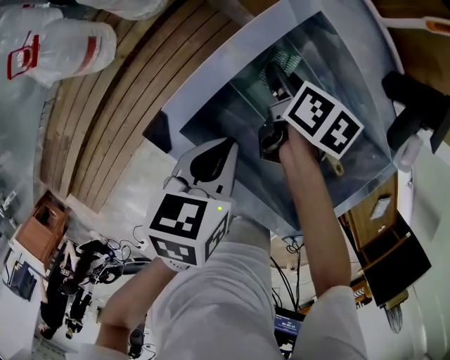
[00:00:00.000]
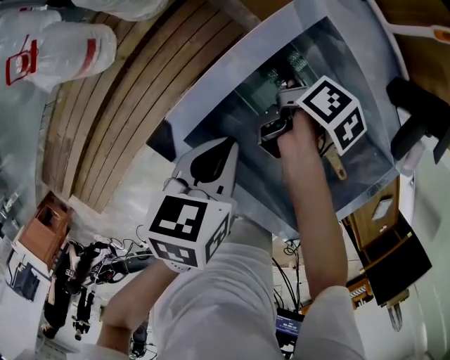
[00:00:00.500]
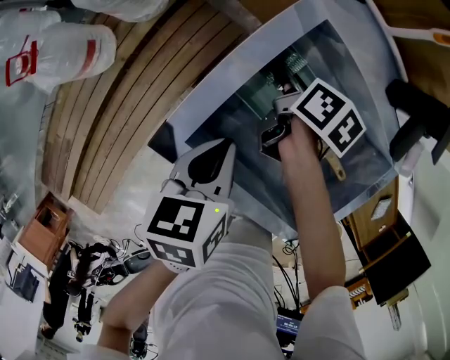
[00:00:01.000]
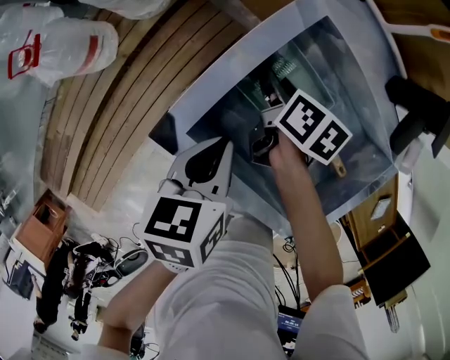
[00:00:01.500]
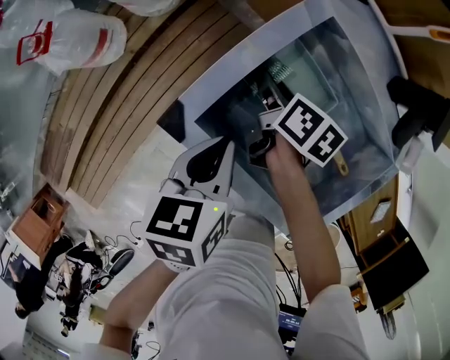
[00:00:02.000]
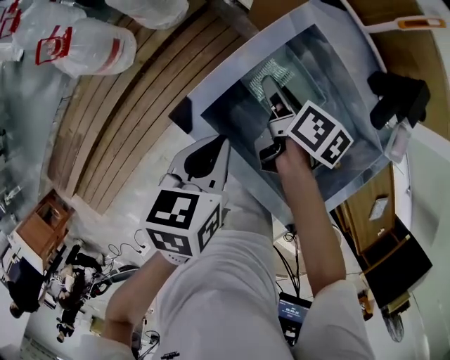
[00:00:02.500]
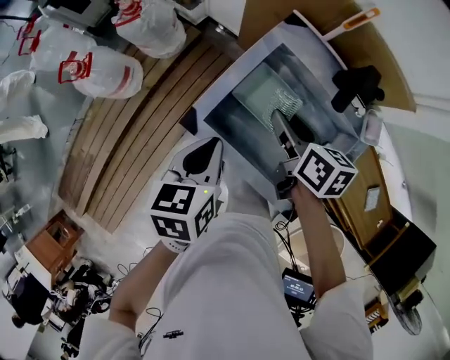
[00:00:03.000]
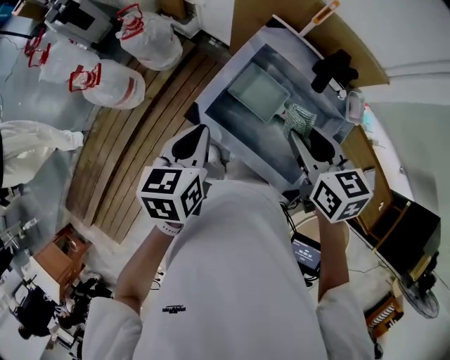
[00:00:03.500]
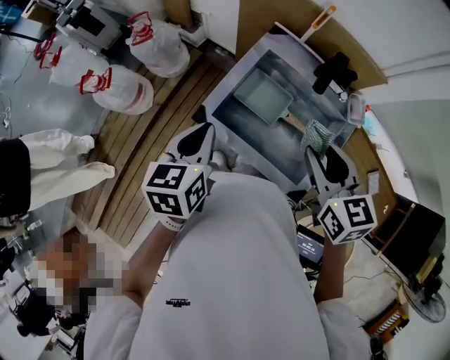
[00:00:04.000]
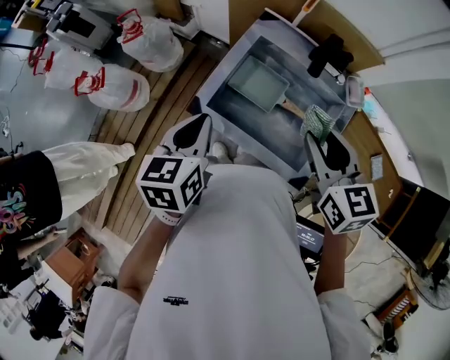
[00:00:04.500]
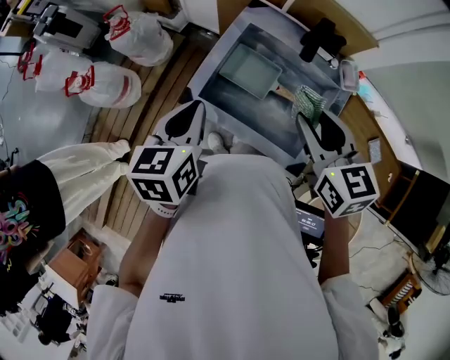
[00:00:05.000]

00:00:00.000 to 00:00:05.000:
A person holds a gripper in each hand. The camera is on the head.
00:00:00.000 to 00:00:02.500: Both grippers move upward, about 5 cm.
00:00:02.500 to 00:00:05.000: The left gripper travels upward by about 20 cm, and turns by roughly 20 degrees; the right gripper goes approximately 35 cm upward and backward, and twists roughly 50 degrees counterclockwise, seen from behind.

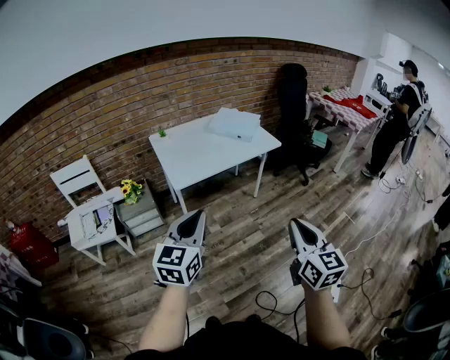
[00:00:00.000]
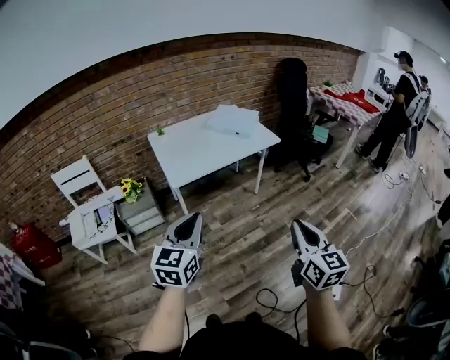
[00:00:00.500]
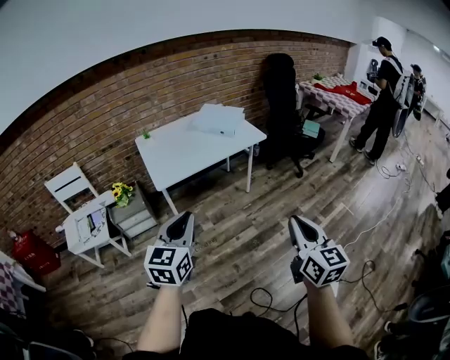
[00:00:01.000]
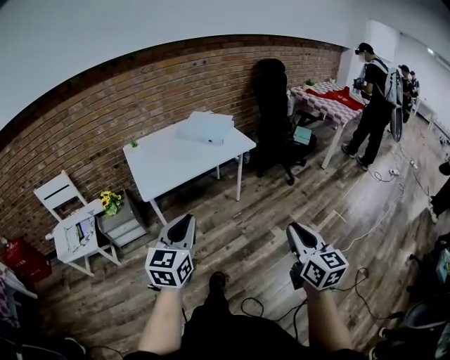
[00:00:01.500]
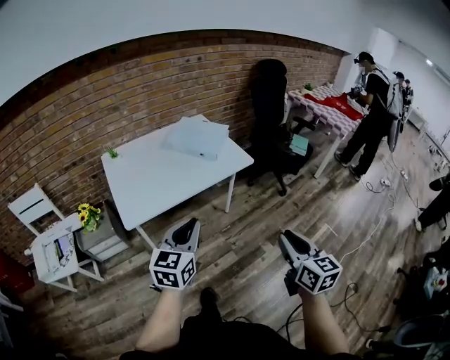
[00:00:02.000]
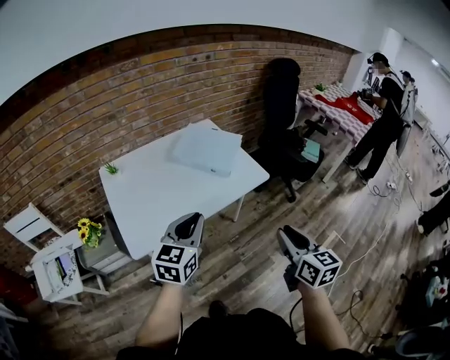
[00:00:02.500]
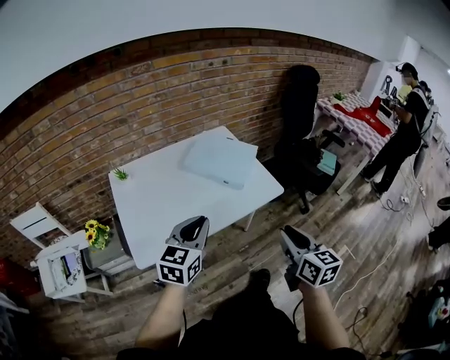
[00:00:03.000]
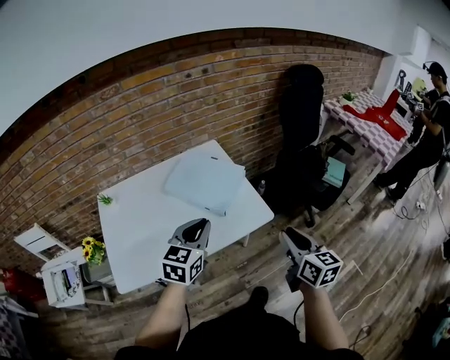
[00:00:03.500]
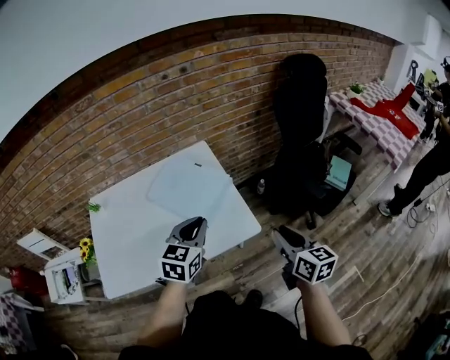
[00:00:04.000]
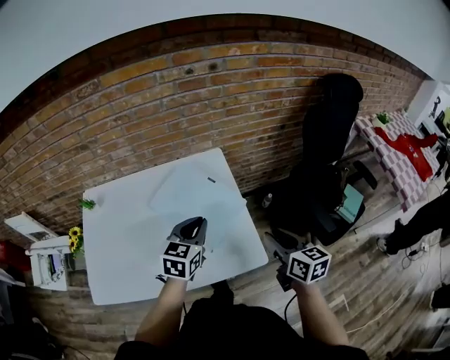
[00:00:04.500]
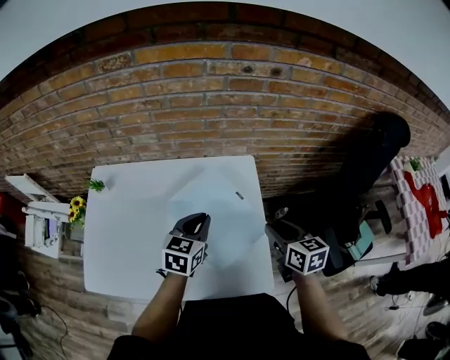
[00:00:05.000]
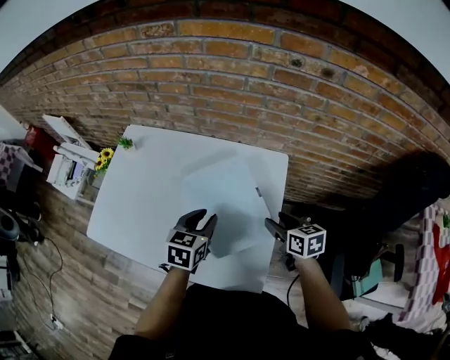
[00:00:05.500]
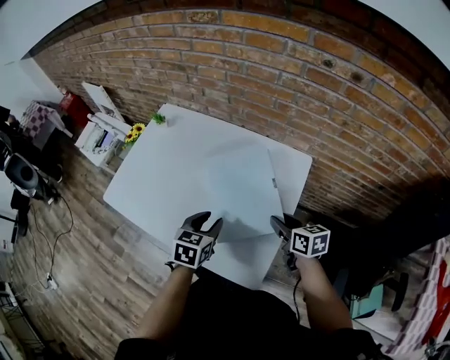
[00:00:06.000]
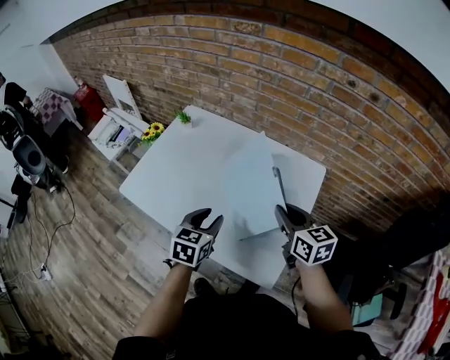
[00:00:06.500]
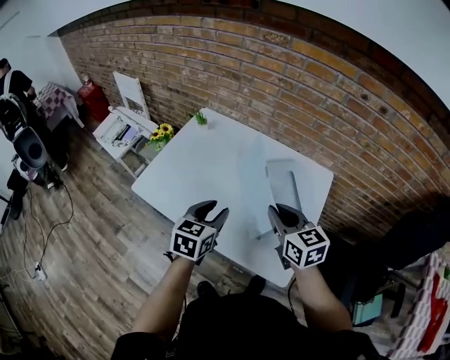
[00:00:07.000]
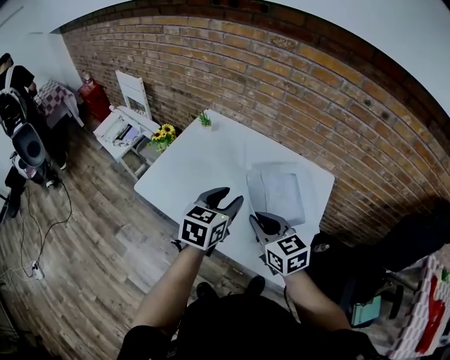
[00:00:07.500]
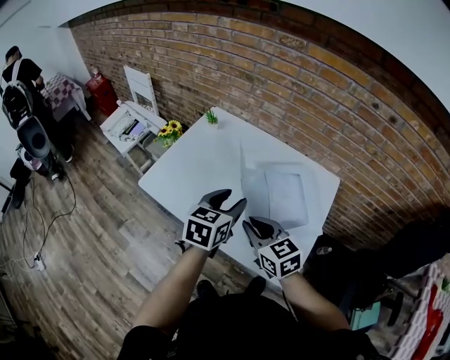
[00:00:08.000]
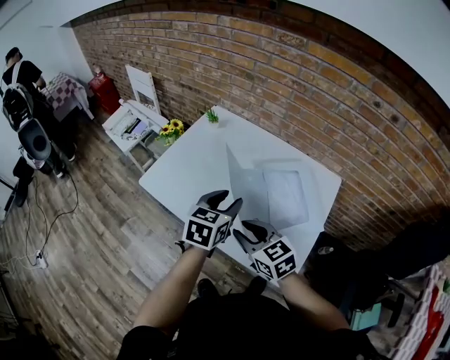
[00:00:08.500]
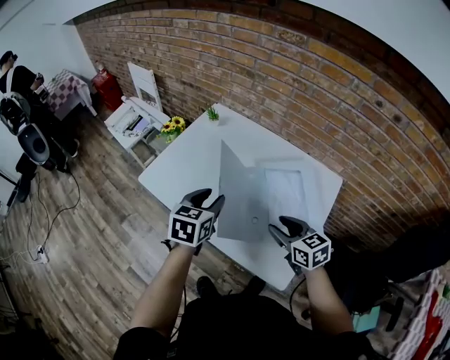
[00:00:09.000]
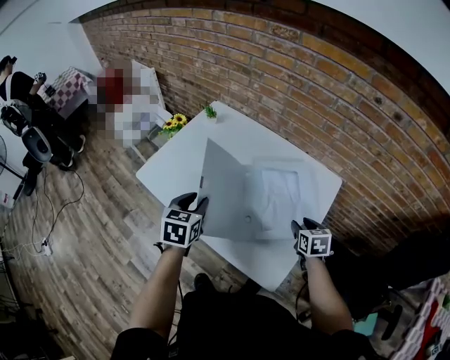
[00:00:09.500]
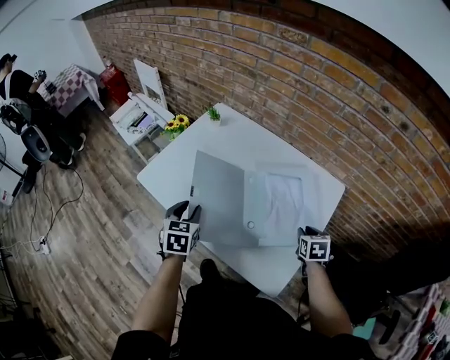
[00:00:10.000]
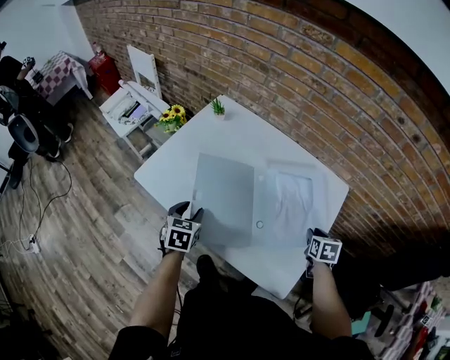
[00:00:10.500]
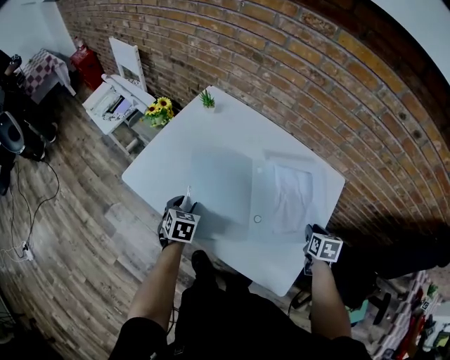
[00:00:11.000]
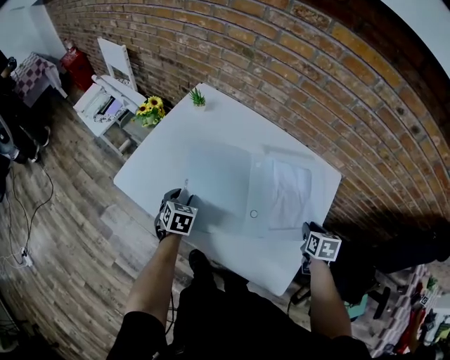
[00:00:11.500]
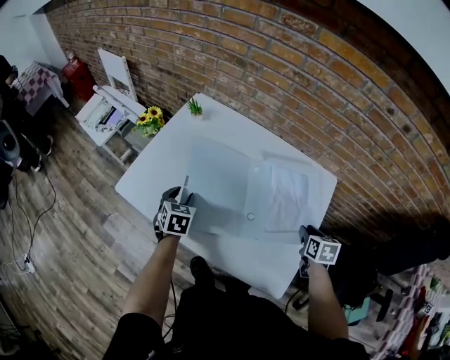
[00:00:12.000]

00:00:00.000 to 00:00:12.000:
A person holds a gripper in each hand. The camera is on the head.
00:00:00.000 to 00:00:02.000: The grippers both shift forward and to the right by about 25 cm.
00:00:02.000 to 00:00:04.000: Both grippers are carried forward, roughly 50 cm.
00:00:04.000 to 00:00:06.000: The right gripper moves about 35 cm, and rotates about 60 degrees; the left gripper moves approximately 20 cm, changes its angle by approximately 50 degrees, and opens.
00:00:06.000 to 00:00:08.000: The left gripper moves to the left and upward, roughly 15 cm, while the right gripper heads to the left, covering approximately 30 cm, rotates about 30 degrees, and closes its fingers.
00:00:08.000 to 00:00:10.000: The right gripper heads to the right and downward, covering roughly 30 cm, and swivels roughly 40 degrees, while the left gripper goes roughly 15 cm to the left and downward, and rotates some 30 degrees.
00:00:10.000 to 00:00:12.000: The left gripper moves forward and downward, approximately 15 cm.

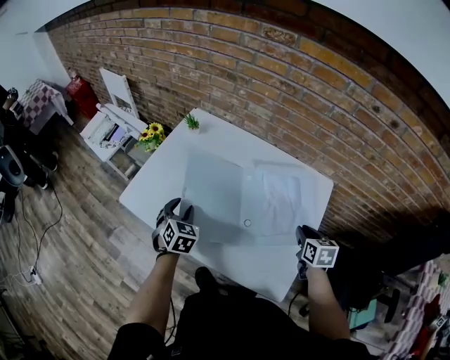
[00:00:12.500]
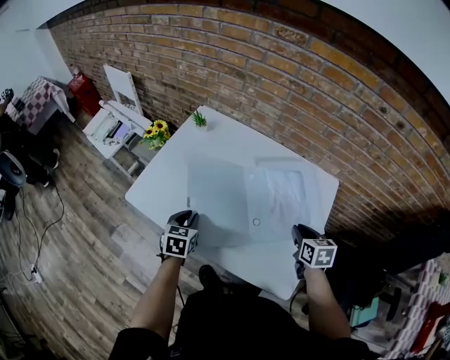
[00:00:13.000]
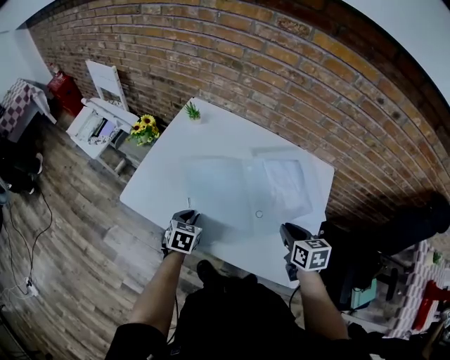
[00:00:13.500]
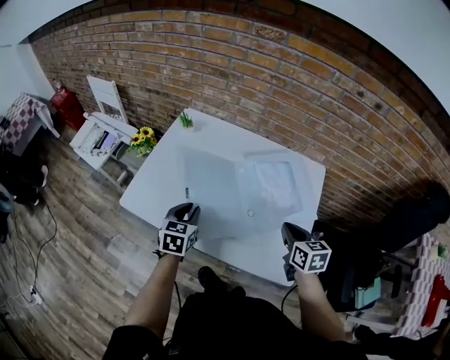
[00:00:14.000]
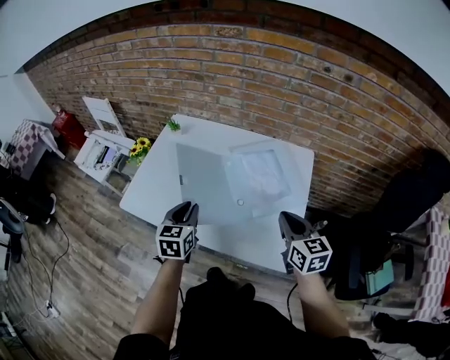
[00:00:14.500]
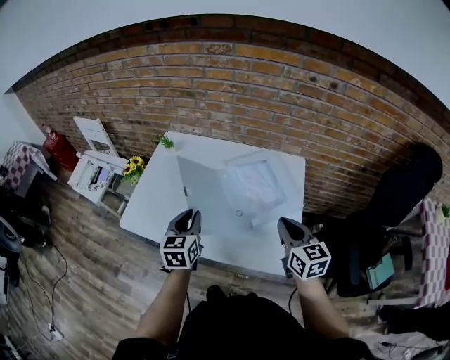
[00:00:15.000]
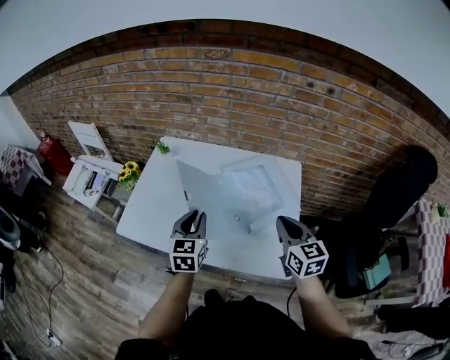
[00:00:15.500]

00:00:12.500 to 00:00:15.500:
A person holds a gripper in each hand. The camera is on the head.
00:00:12.500 to 00:00:14.000: The left gripper reaches about 10 cm downward, then returns, turns by approximately 30 degrees, and closes its fingers, while the right gripper heads to the left, backward and upward, covering about 15 cm.
00:00:14.000 to 00:00:15.500: The right gripper heads upward, covering roughly 10 cm, and turns by roughly 20 degrees. Meanwhile the left gripper is displaced upward and to the right by approximately 10 cm.

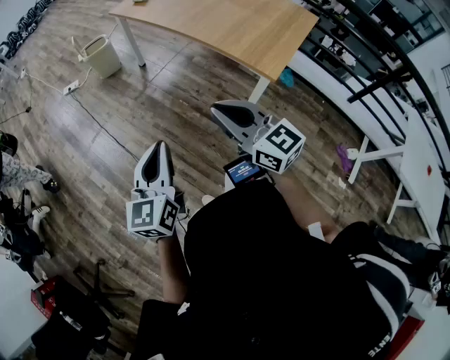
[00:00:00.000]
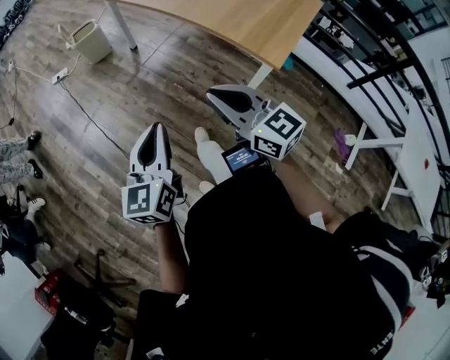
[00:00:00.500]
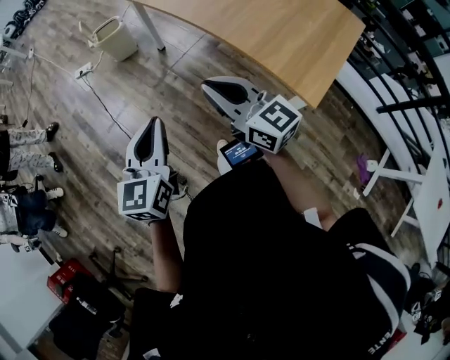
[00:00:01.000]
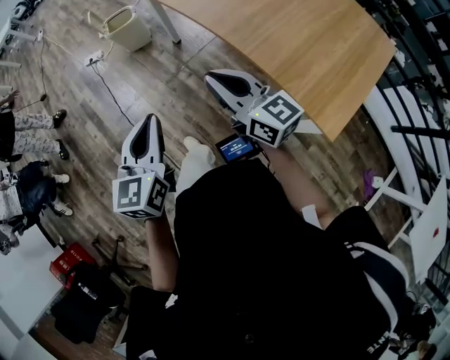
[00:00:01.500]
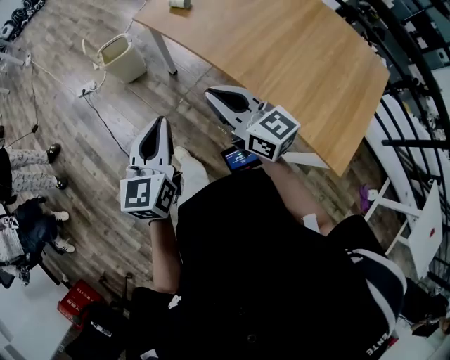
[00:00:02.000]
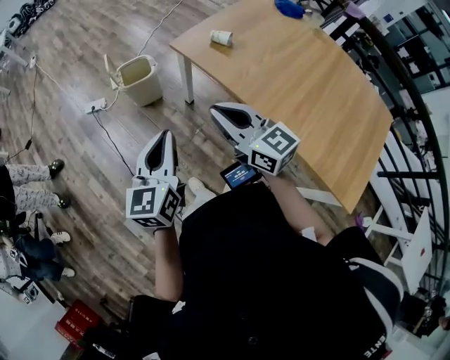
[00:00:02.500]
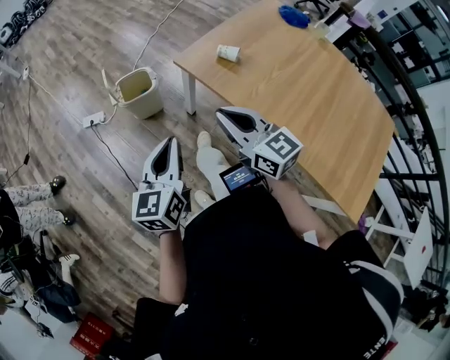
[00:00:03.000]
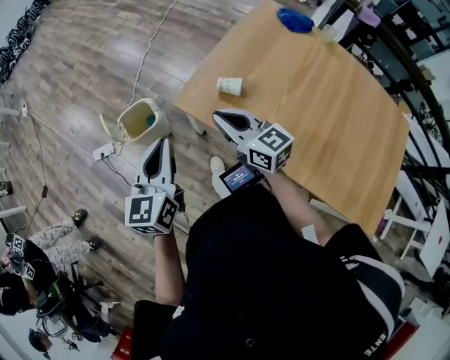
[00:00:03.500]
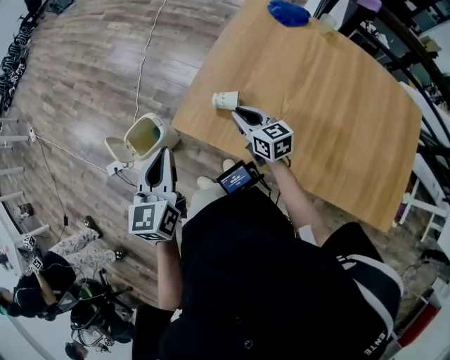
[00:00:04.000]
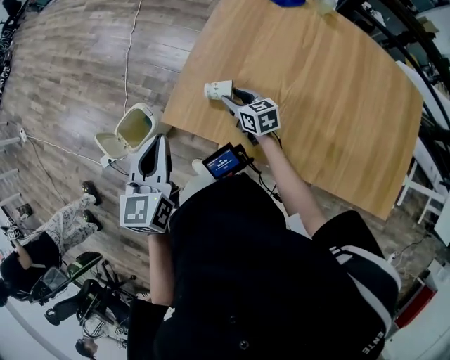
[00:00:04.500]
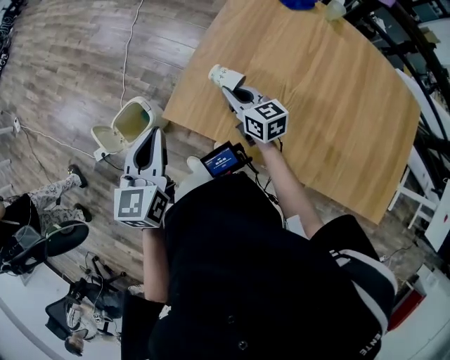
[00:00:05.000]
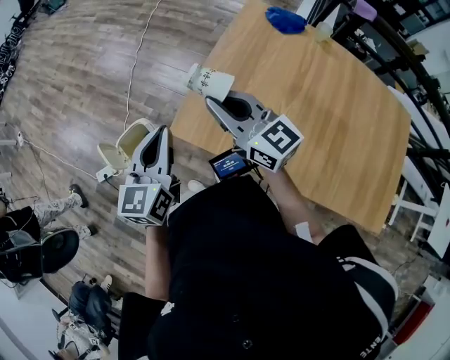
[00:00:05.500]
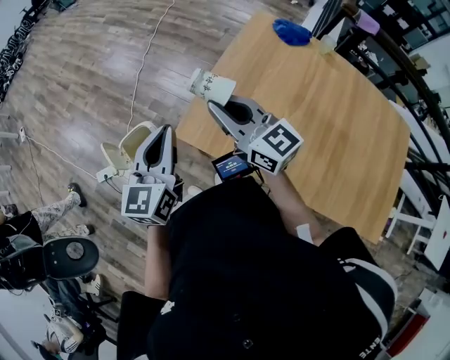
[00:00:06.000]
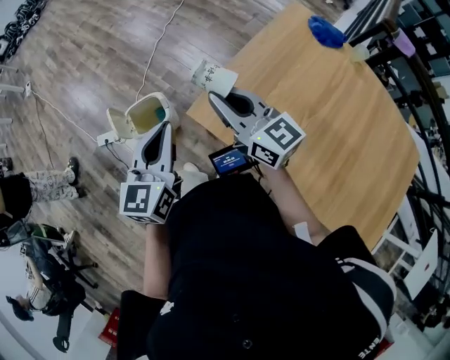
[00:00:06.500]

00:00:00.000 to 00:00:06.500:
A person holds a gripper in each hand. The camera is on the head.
00:00:00.000 to 00:00:02.000: The two grippers travel together, forward, about 60 cm.
00:00:02.000 to 00:00:04.500: The pair of grippers is taken forward, roughly 50 cm. The right gripper travels downward by about 25 cm, tips its fingers downward by about 30 degrees, and opens up.
00:00:04.500 to 00:00:06.500: The right gripper shifts approximately 30 cm upward and to the left, points its fingers approximately 30 degrees further upward, and closes up. The left gripper goes about 5 cm to the left.
